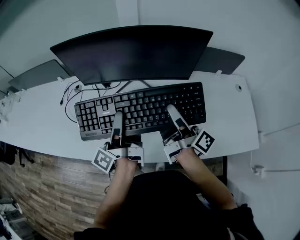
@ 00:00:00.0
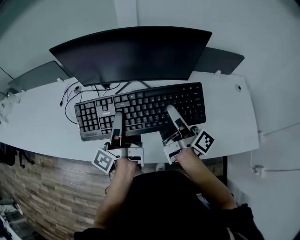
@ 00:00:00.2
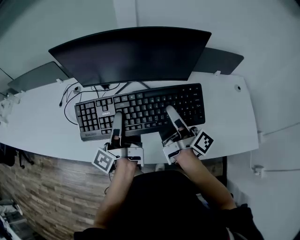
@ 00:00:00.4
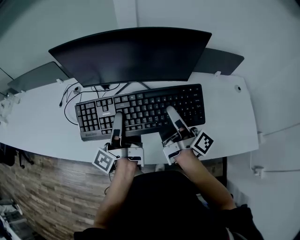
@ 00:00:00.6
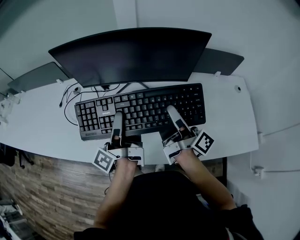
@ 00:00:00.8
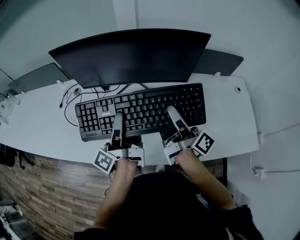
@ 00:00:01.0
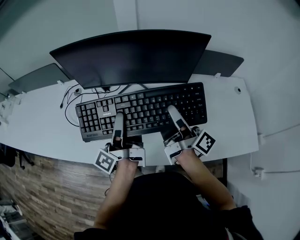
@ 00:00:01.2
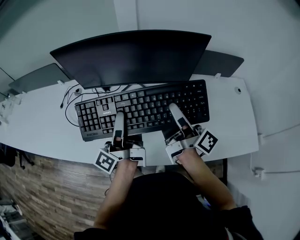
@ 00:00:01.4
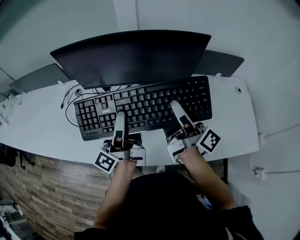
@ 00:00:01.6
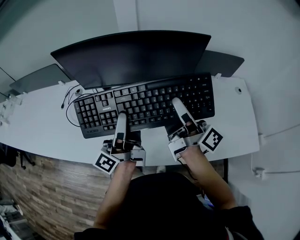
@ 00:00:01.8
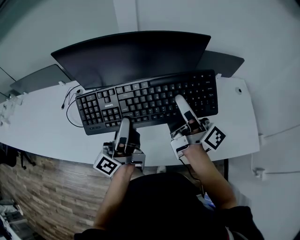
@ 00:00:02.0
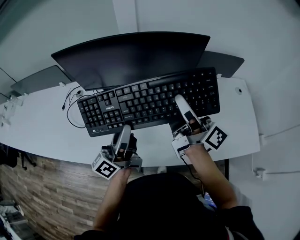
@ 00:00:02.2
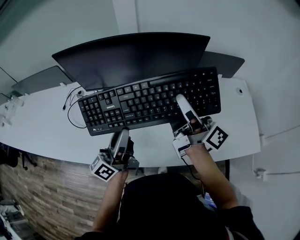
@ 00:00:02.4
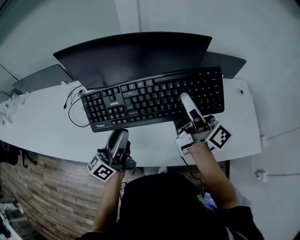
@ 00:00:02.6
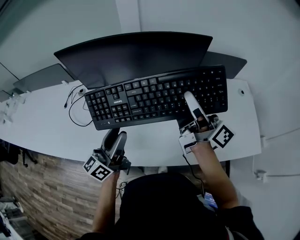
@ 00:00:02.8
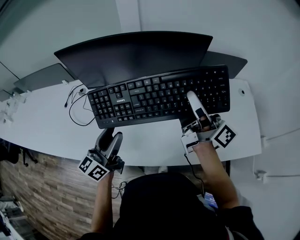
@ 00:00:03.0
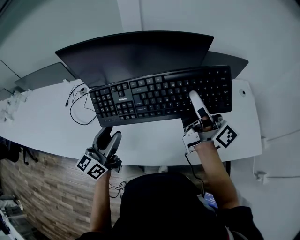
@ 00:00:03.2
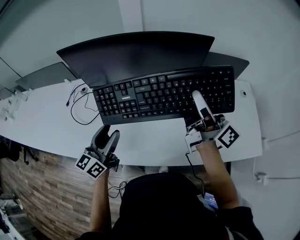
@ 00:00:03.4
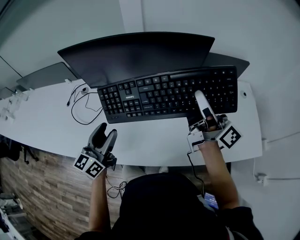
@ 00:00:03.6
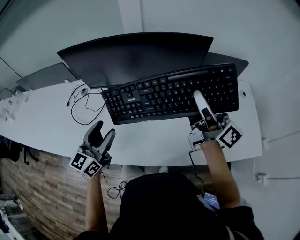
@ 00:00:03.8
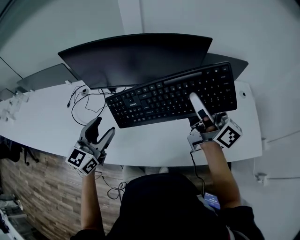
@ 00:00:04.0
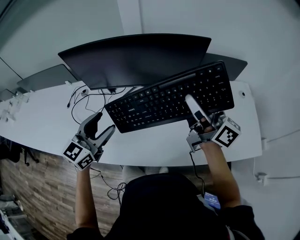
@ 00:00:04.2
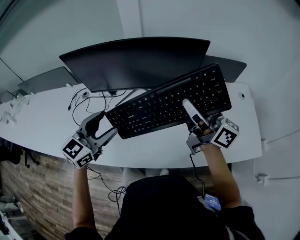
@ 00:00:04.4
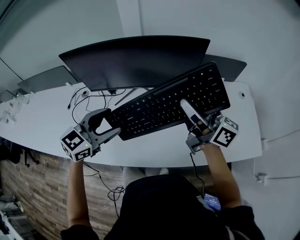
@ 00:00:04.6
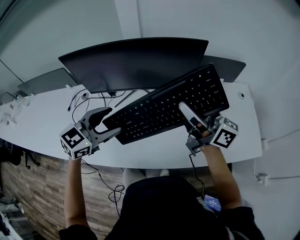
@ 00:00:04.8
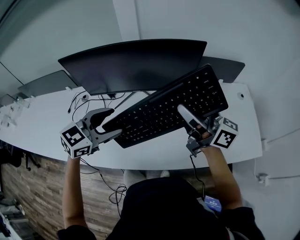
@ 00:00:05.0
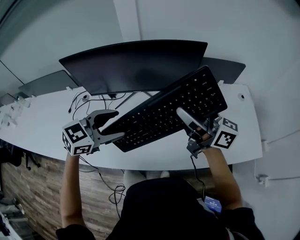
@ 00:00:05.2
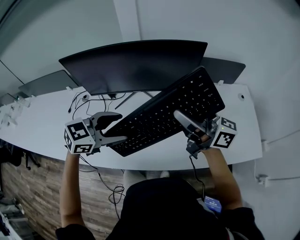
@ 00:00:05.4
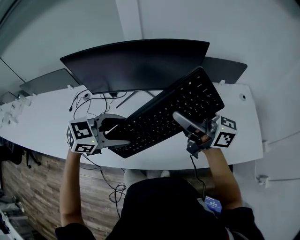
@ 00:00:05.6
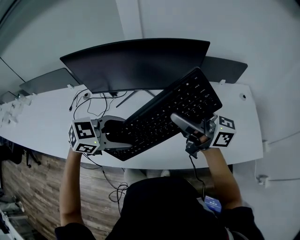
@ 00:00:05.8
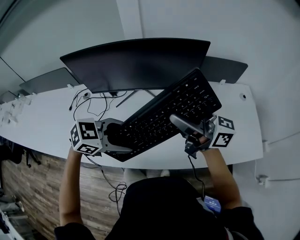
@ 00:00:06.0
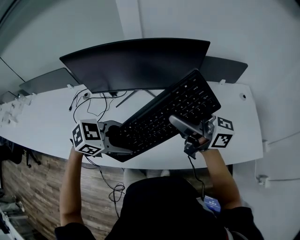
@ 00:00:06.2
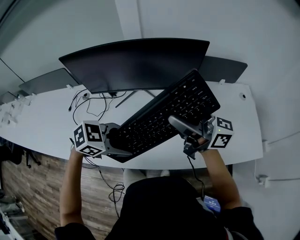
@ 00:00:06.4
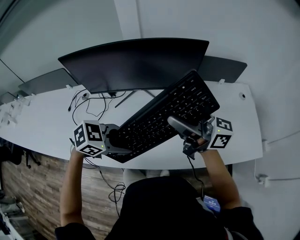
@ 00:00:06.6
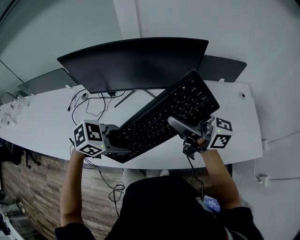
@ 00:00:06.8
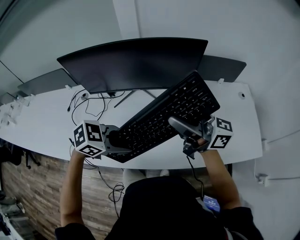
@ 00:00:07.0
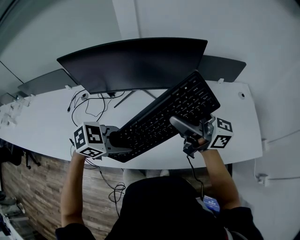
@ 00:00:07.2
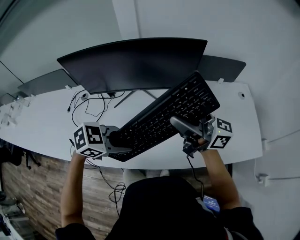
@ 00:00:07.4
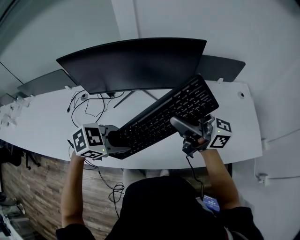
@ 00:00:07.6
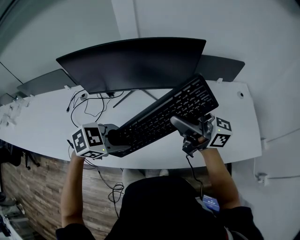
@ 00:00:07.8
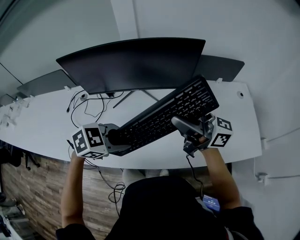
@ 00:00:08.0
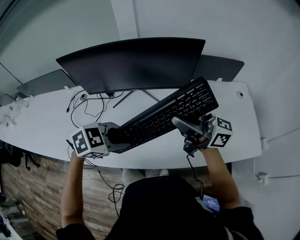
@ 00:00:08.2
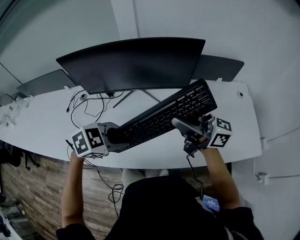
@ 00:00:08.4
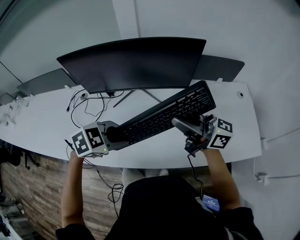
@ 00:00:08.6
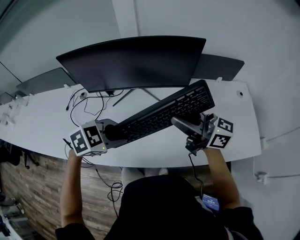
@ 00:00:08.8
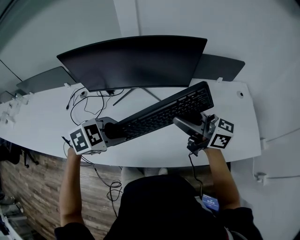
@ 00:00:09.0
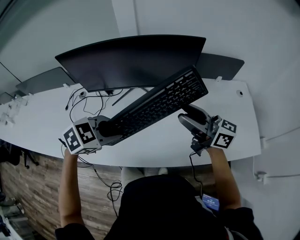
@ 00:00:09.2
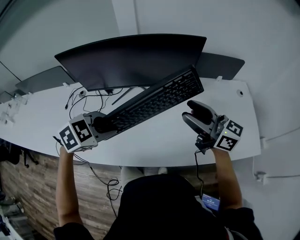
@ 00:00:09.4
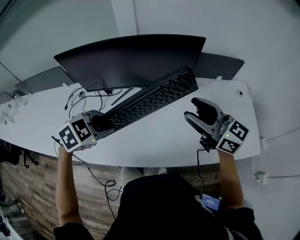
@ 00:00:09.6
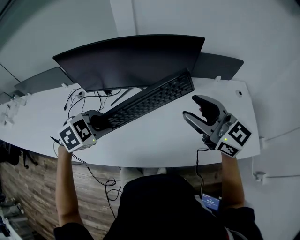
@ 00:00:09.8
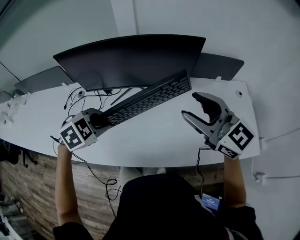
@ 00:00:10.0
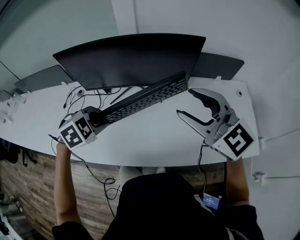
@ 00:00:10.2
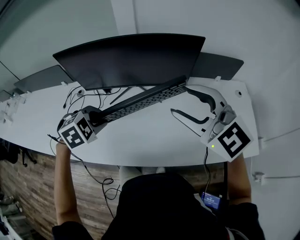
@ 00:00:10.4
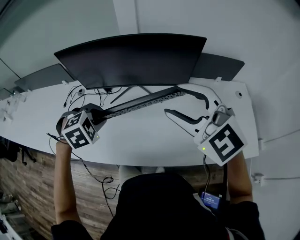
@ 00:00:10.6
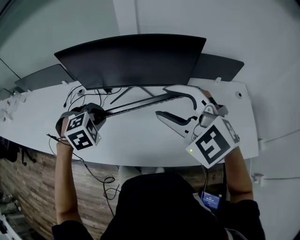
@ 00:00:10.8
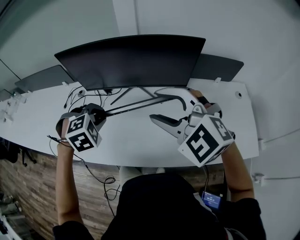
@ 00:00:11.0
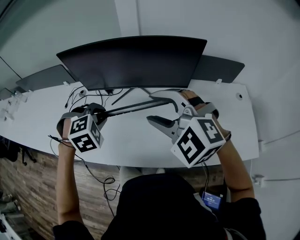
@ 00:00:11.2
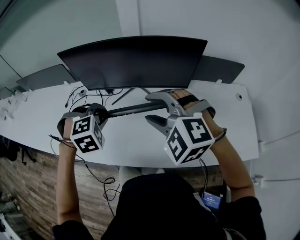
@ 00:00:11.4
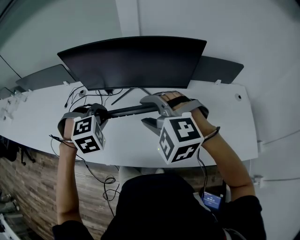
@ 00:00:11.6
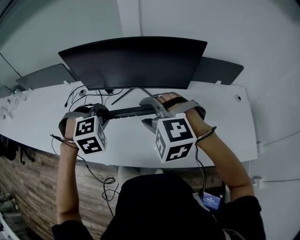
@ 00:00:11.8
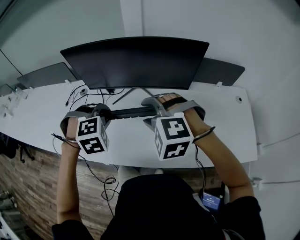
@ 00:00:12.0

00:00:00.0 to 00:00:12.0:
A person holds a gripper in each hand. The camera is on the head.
00:00:00.0 to 00:00:01.6: There are only small adjustments of the grippers.
00:00:01.6 to 00:00:03.0: The left gripper goes about 10 cm to the left, backward and downward, and turns by some 50 degrees.
00:00:03.0 to 00:00:04.4: The left gripper heads upward, covering approximately 10 cm, and changes its angle by roughly 40 degrees, while the right gripper moves upward, some 5 cm, and changes its angle by about 20 degrees.
00:00:04.4 to 00:00:06.0: The right gripper shifts by some 5 cm, and rotates about 20 degrees. The left gripper shifts by approximately 10 cm, and changes its angle by some 50 degrees.
00:00:06.0 to 00:00:07.6: The left gripper closes its fingers.
00:00:07.6 to 00:00:09.0: The right gripper opens.
00:00:09.0 to 00:00:10.4: The right gripper heads upward, covering approximately 5 cm, and rolls counterclockwise, seen from behind, by approximately 60 degrees, while the left gripper changes place by about 10 cm, and changes its angle by some 20 degrees.
00:00:10.4 to 00:00:12.0: The right gripper travels downward and to the left by some 15 cm, and points its fingers some 30 degrees further downward. The left gripper turns by roughly 20 degrees.

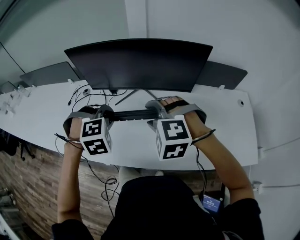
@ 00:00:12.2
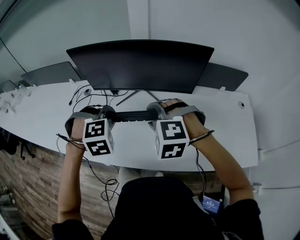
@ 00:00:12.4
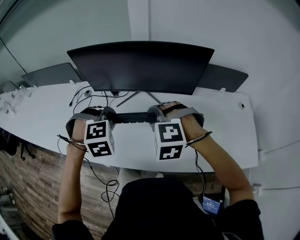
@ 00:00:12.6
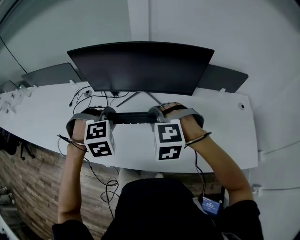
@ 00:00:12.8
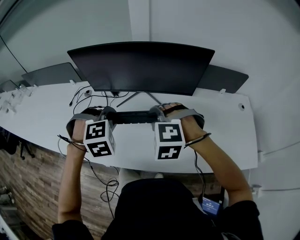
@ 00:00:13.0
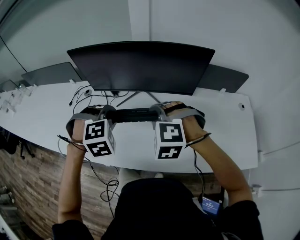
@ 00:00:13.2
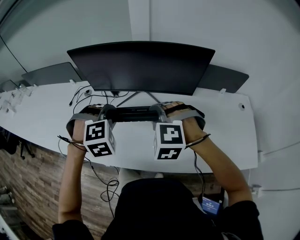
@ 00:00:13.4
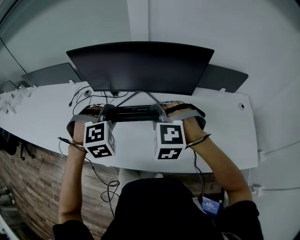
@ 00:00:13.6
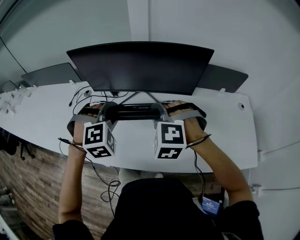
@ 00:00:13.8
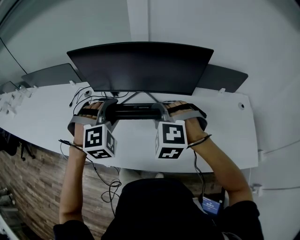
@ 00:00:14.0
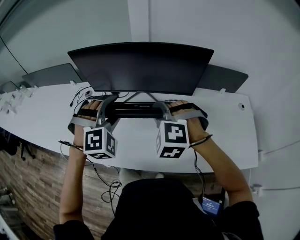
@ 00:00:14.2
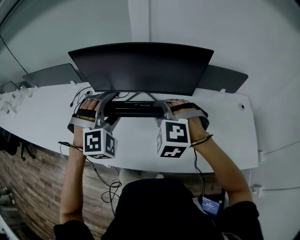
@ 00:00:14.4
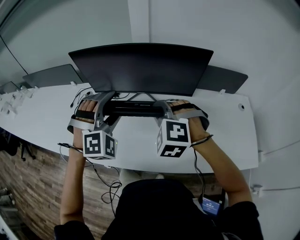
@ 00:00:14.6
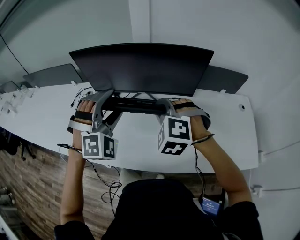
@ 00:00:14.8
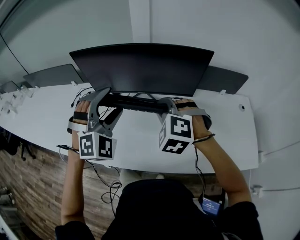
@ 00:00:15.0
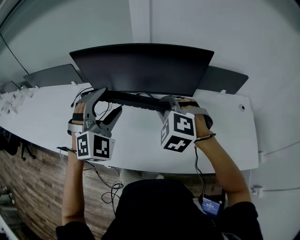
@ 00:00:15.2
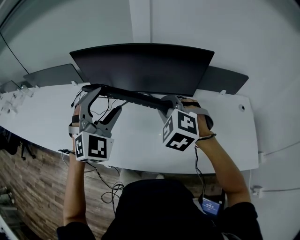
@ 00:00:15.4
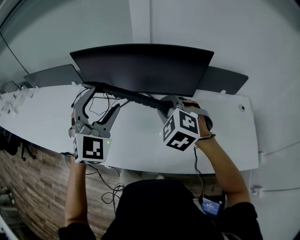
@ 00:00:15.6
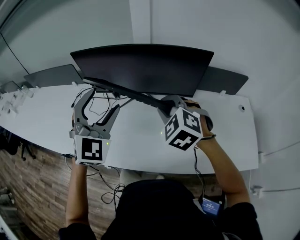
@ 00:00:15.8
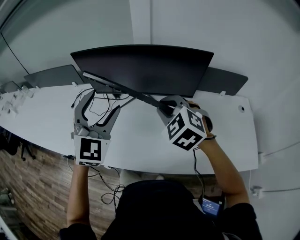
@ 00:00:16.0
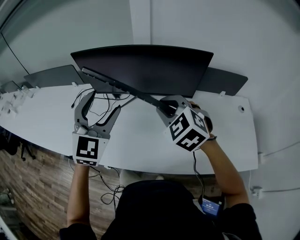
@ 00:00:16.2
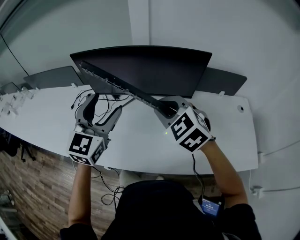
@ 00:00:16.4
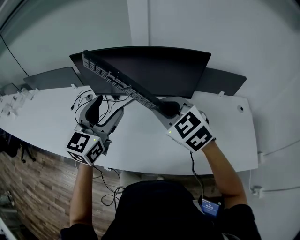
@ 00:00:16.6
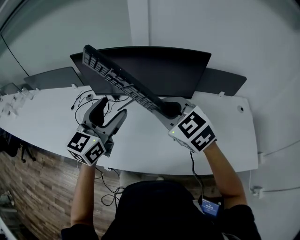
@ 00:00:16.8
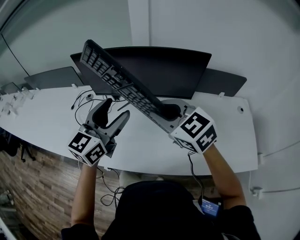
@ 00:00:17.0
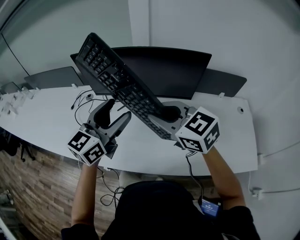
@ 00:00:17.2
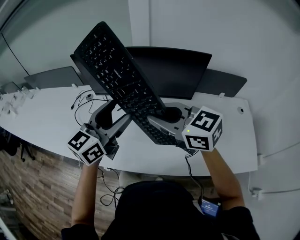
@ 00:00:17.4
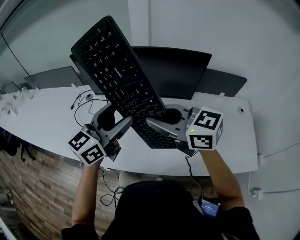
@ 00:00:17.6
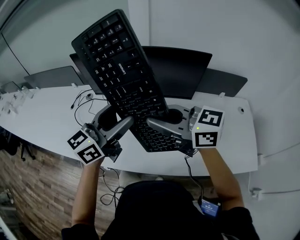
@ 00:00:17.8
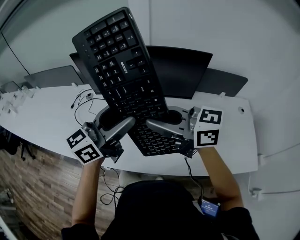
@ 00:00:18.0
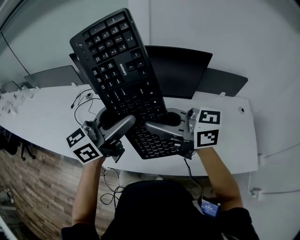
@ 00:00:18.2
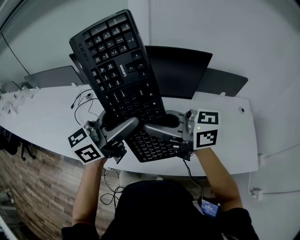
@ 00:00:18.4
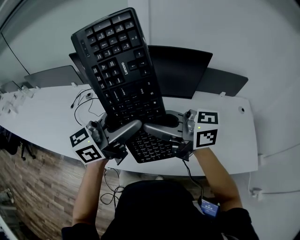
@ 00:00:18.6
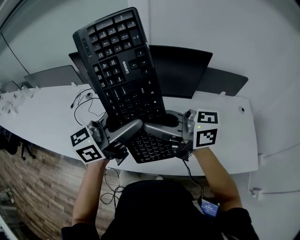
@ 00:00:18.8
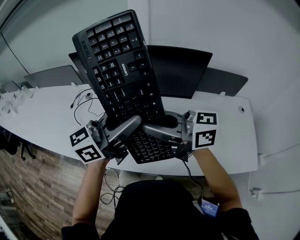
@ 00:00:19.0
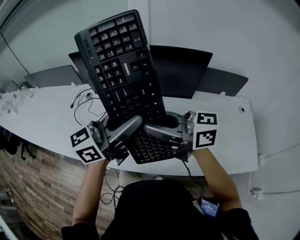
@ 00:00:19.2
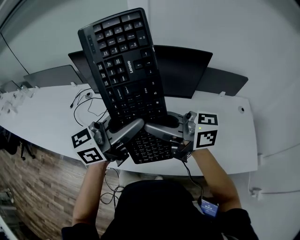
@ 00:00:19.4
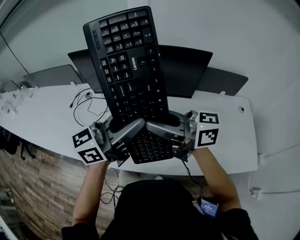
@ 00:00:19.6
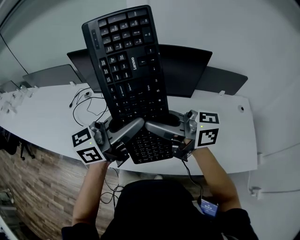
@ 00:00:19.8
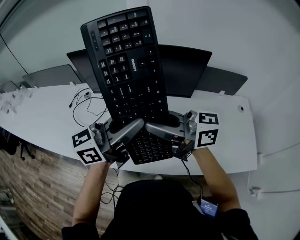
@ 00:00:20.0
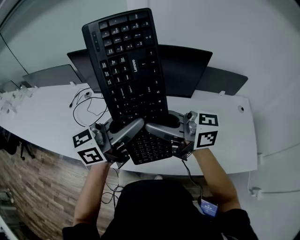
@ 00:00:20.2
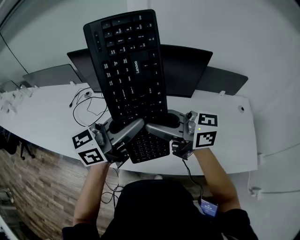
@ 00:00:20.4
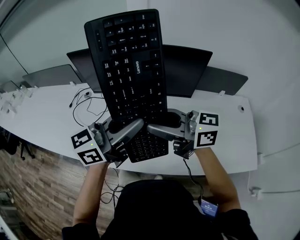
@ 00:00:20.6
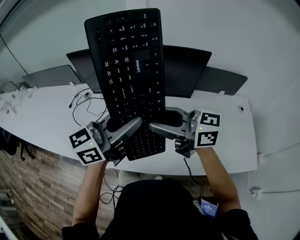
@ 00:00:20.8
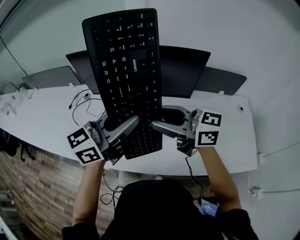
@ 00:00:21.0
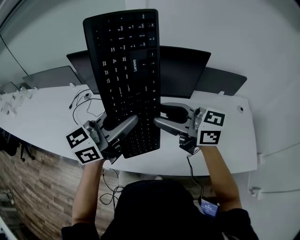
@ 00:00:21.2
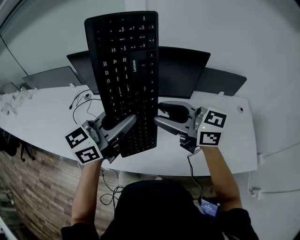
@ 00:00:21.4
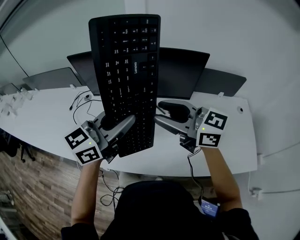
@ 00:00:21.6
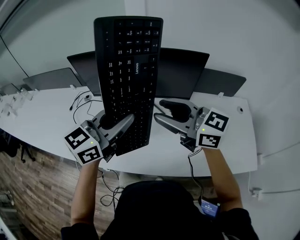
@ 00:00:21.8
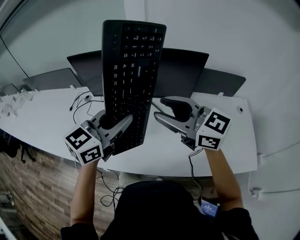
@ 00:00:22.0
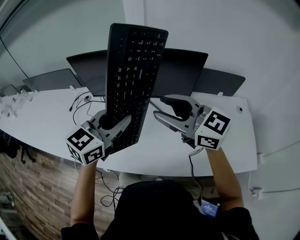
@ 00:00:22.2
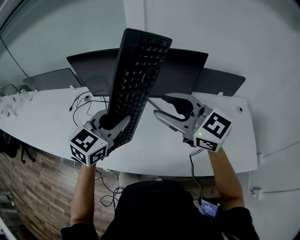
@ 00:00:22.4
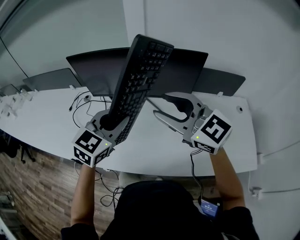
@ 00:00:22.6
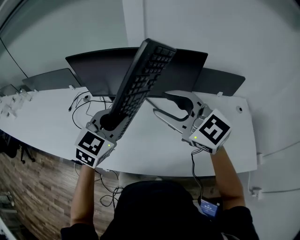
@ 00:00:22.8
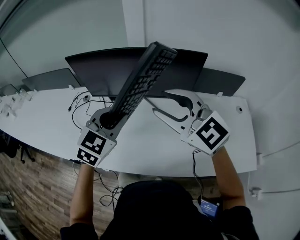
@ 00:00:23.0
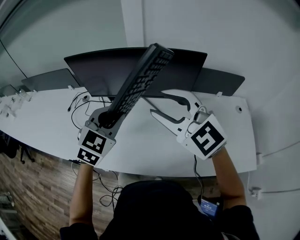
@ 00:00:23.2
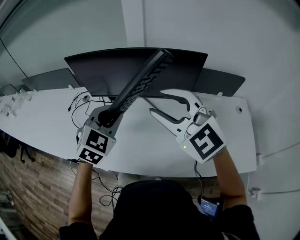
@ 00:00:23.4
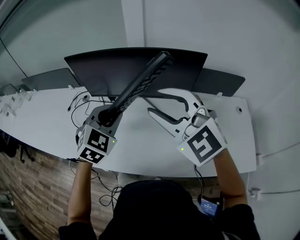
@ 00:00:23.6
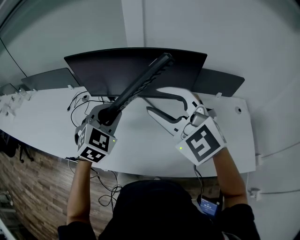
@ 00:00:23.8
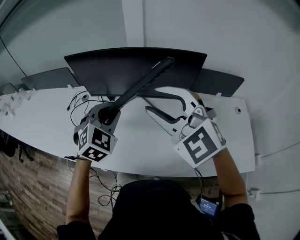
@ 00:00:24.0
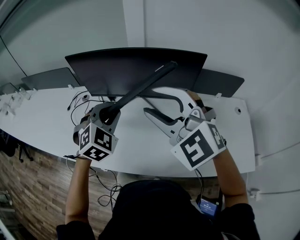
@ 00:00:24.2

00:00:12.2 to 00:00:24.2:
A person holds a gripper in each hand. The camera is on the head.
00:00:12.2 to 00:00:13.8: The right gripper closes.
00:00:13.8 to 00:00:15.2: The left gripper moves upward, roughly 10 cm, swivels approximately 30 degrees, and opens.
00:00:15.2 to 00:00:16.6: The left gripper twists some 60 degrees counterclockwise, seen from behind. The right gripper rotates approximately 30 degrees.
00:00:16.6 to 00:00:18.2: The right gripper travels backward by about 5 cm, and angles its fingers upward, by about 30 degrees. The left gripper heads to the right, covering roughly 5 cm, and swivels approximately 40 degrees.
00:00:18.2 to 00:00:19.8: The left gripper turns by about 20 degrees, and closes.
00:00:19.8 to 00:00:21.2: The right gripper opens.
00:00:21.2 to 00:00:22.6: The left gripper heads downward, covering about 5 cm, and turns by some 40 degrees; the right gripper rotates approximately 30 degrees.
00:00:22.6 to 00:00:24.2: The right gripper swivels approximately 40 degrees. Meanwhile the left gripper ends up some 5 cm from where it was, and changes its angle by approximately 30 degrees.
